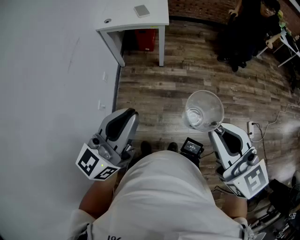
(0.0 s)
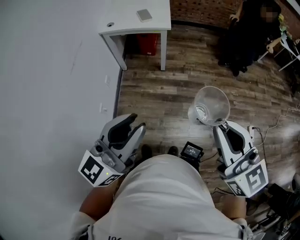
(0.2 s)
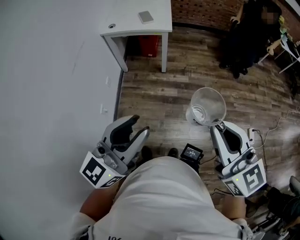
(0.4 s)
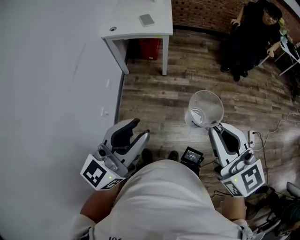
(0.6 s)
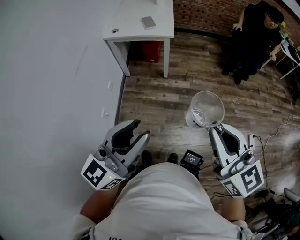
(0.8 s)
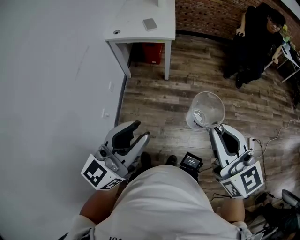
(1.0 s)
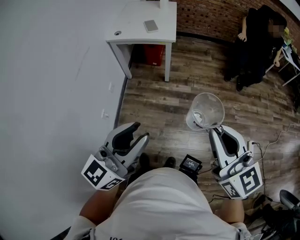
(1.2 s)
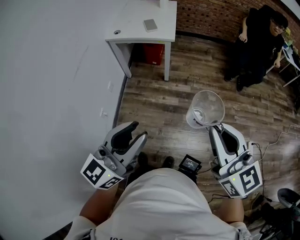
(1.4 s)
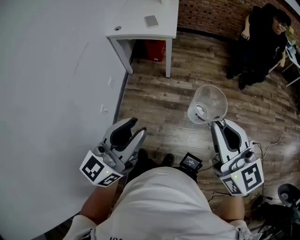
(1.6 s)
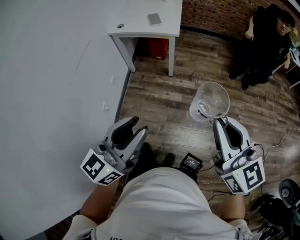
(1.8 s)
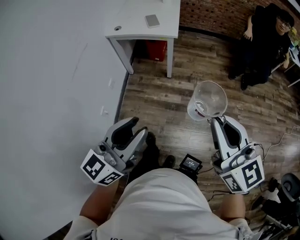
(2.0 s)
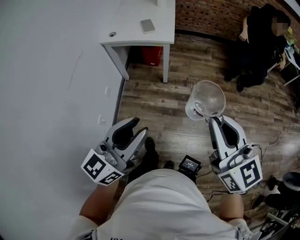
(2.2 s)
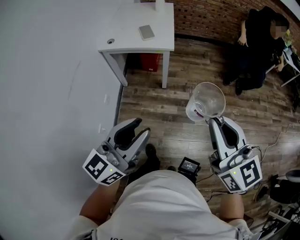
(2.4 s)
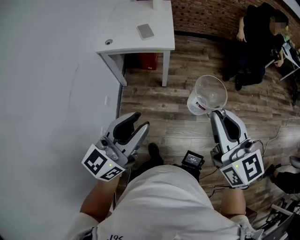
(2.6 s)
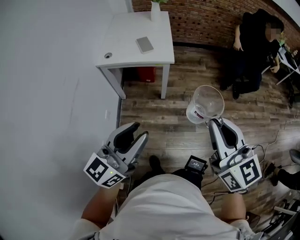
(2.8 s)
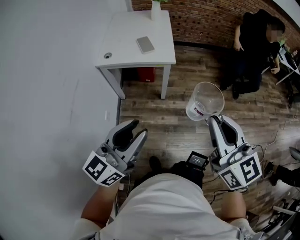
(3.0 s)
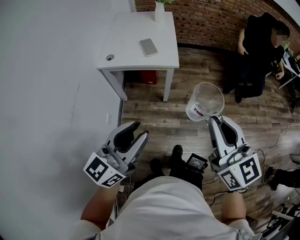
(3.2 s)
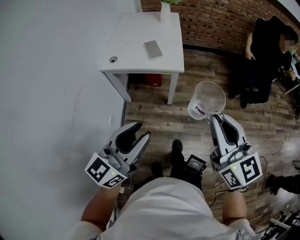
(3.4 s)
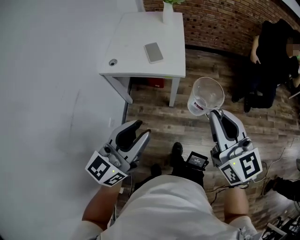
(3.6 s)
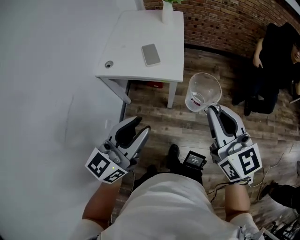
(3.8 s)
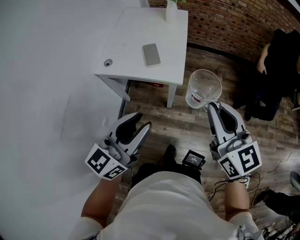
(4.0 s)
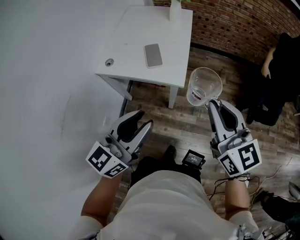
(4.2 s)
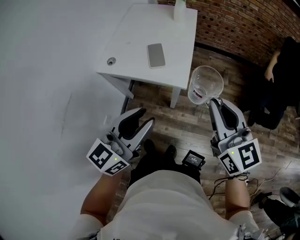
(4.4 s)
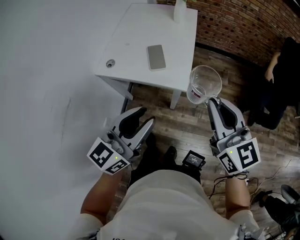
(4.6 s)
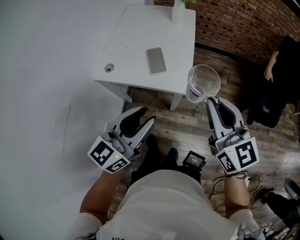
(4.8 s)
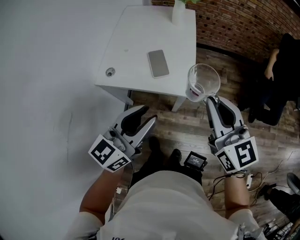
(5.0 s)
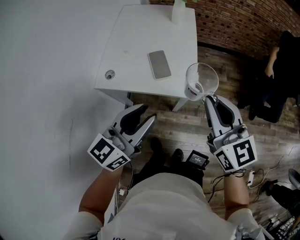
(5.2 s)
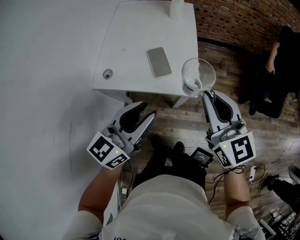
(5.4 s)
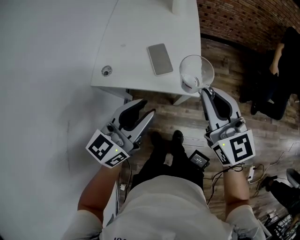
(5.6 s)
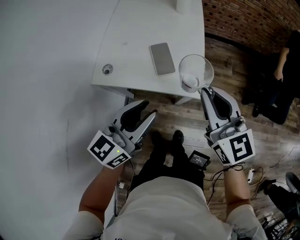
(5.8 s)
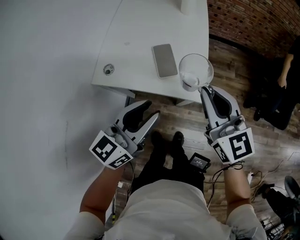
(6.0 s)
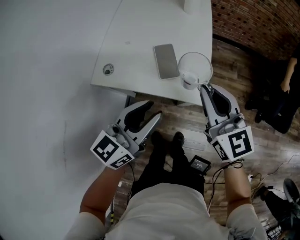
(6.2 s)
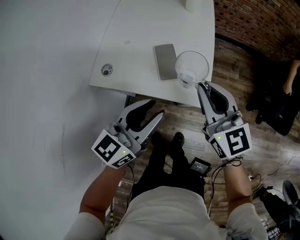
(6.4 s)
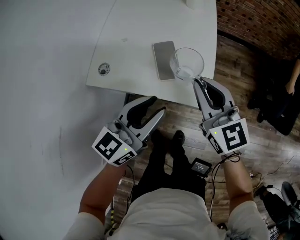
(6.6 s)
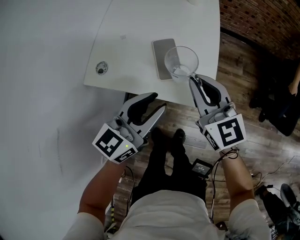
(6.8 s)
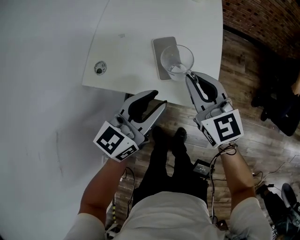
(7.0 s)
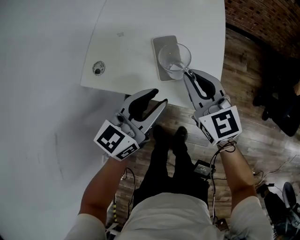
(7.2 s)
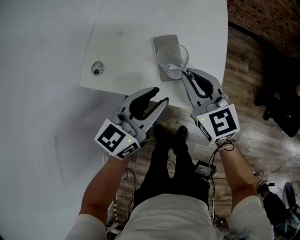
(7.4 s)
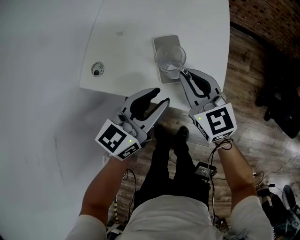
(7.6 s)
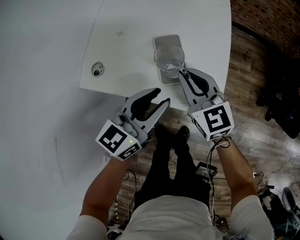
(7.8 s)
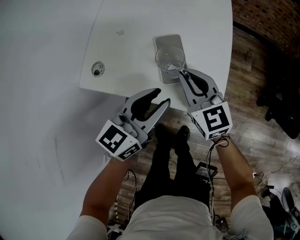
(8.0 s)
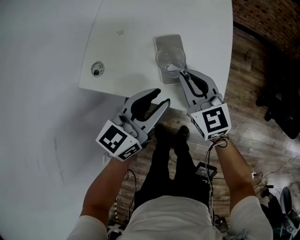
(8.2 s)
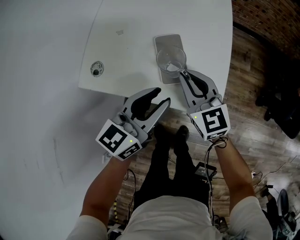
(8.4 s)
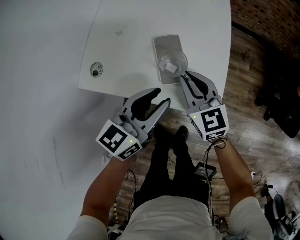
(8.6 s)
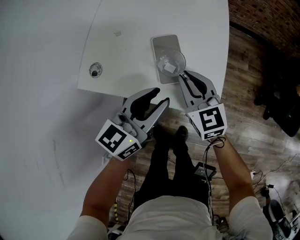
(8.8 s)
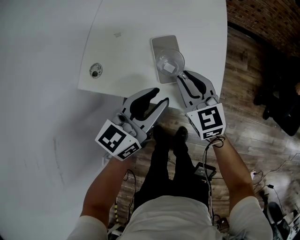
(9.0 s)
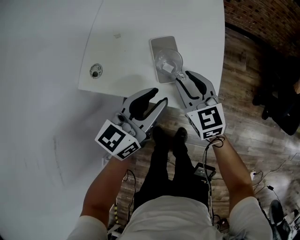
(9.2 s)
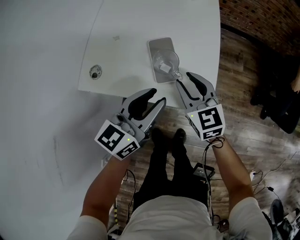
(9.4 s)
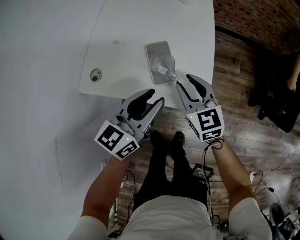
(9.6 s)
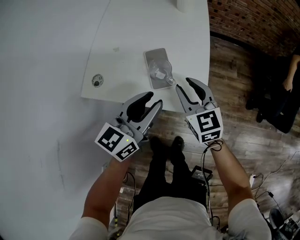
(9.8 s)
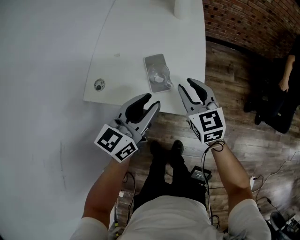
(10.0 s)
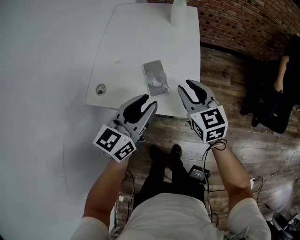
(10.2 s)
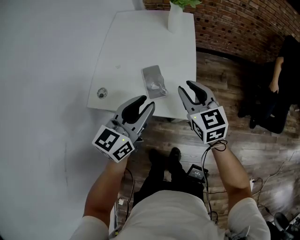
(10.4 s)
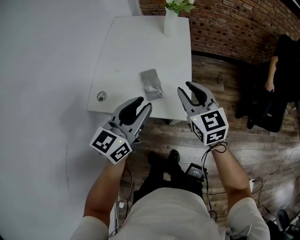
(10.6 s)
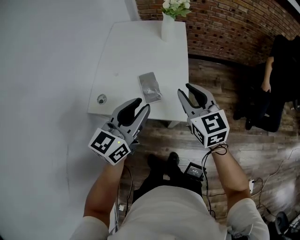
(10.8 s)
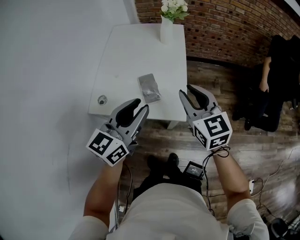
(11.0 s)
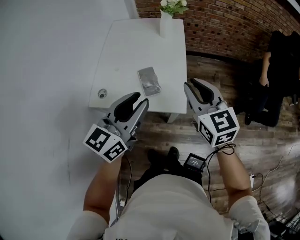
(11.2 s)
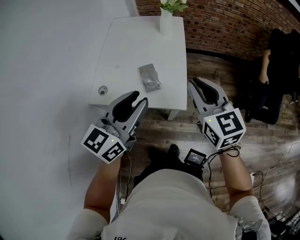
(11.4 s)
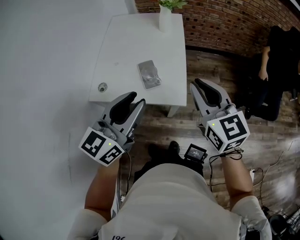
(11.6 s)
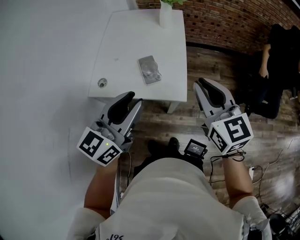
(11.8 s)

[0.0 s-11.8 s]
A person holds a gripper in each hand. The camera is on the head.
0.0 to 1.4 s: Both grippers move to the right, approximately 5 cm. The left gripper opens.
1.4 to 3.0 s: The grippers both shift forward and to the left by approximately 25 cm.
3.0 to 4.4 s: The grippers both shift forward by approximately 25 cm.
4.4 to 6.0 s: Both grippers travel together forward, to the left and downward, about 20 cm.
6.0 to 7.4 s: The left gripper moves downward and forward, about 15 cm. Meanwhile the right gripper moves downward, forward and to the left, roughly 20 cm.
7.4 to 8.8 s: The right gripper travels downward by roughly 5 cm.
8.8 to 10.4 s: The right gripper heads upward and to the right, covering approximately 15 cm, and opens up. The left gripper travels upward by about 10 cm.
10.4 to 11.8 s: The right gripper heads upward, backward and to the right, covering approximately 20 cm; the left gripper shifts some 15 cm upward and backward.

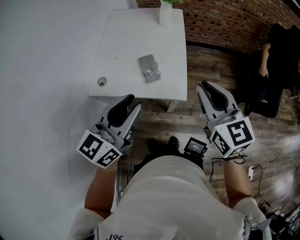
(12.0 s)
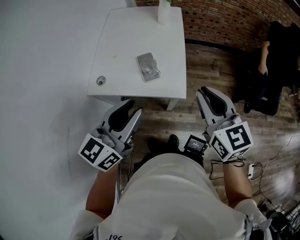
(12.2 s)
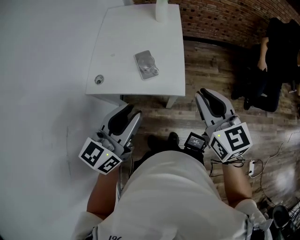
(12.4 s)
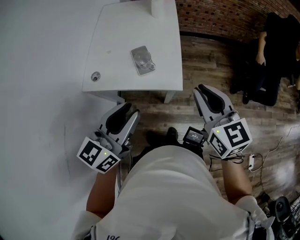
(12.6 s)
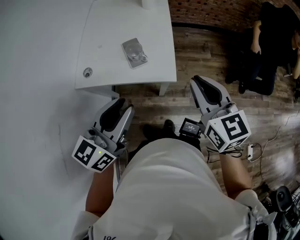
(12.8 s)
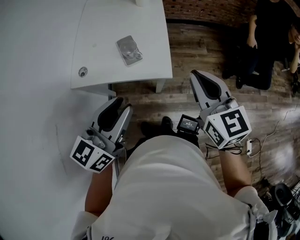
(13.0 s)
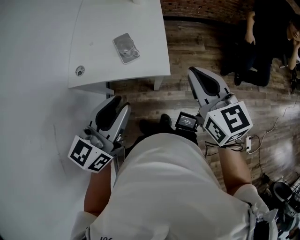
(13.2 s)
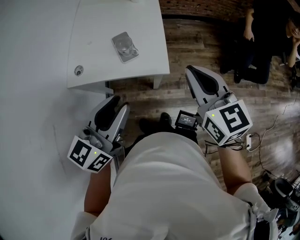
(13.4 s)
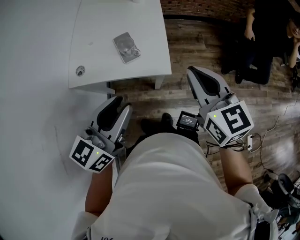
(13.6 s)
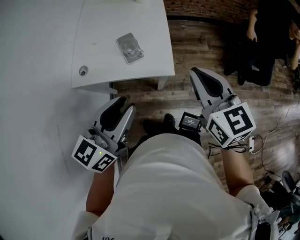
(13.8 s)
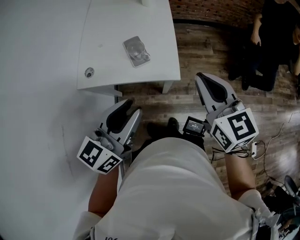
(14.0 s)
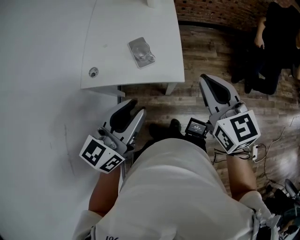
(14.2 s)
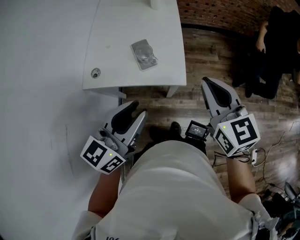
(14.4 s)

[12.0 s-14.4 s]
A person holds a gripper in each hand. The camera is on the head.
12.0 to 13.2 s: The left gripper shifts by roughly 5 cm.
13.2 to 14.4 s: There are only small adjustments of the grippers.

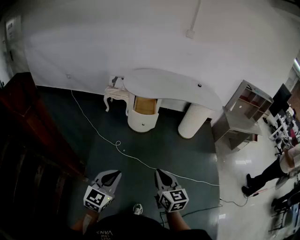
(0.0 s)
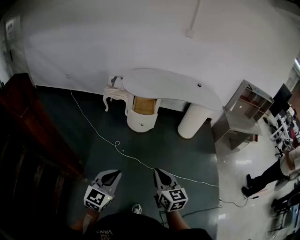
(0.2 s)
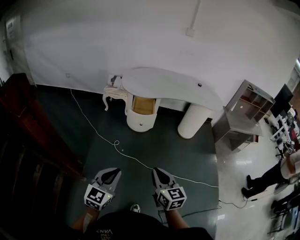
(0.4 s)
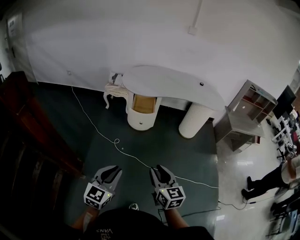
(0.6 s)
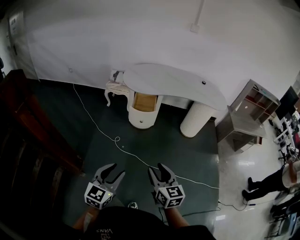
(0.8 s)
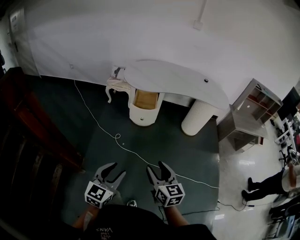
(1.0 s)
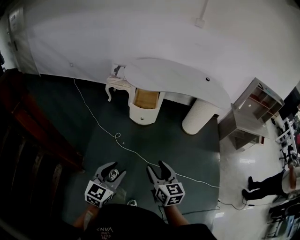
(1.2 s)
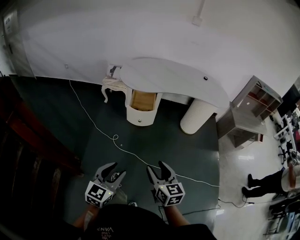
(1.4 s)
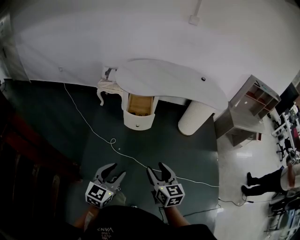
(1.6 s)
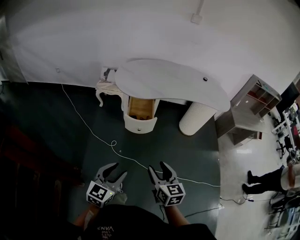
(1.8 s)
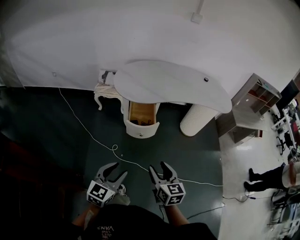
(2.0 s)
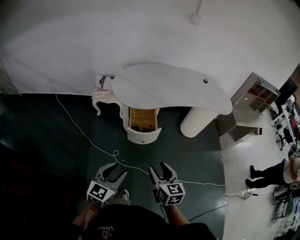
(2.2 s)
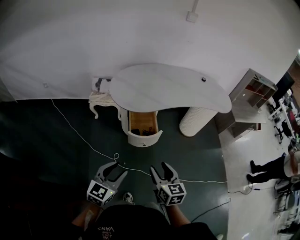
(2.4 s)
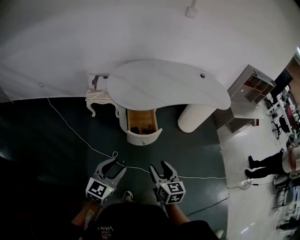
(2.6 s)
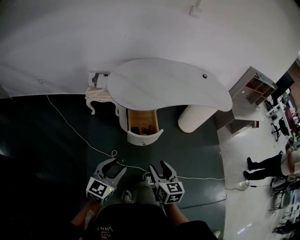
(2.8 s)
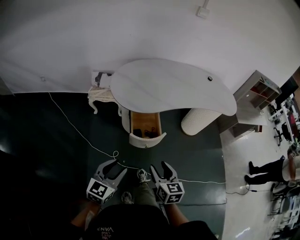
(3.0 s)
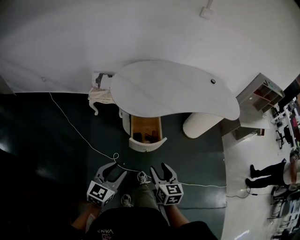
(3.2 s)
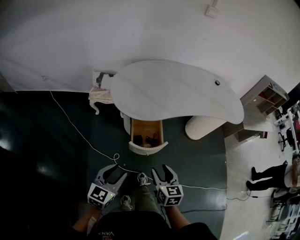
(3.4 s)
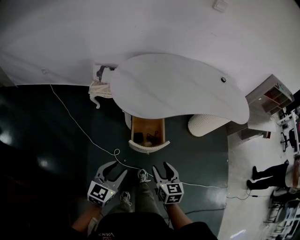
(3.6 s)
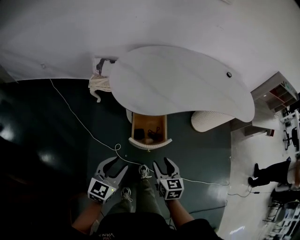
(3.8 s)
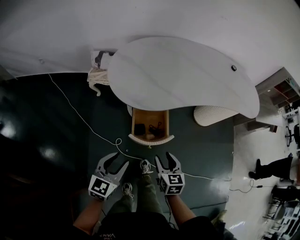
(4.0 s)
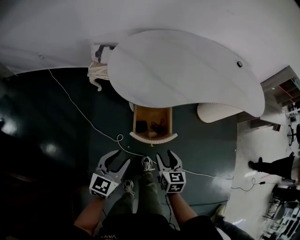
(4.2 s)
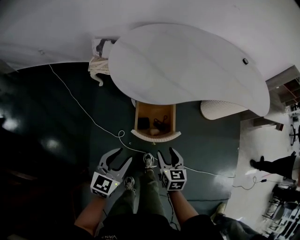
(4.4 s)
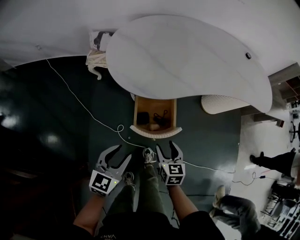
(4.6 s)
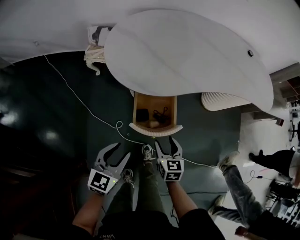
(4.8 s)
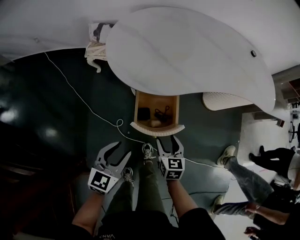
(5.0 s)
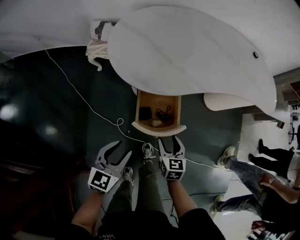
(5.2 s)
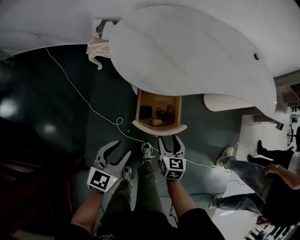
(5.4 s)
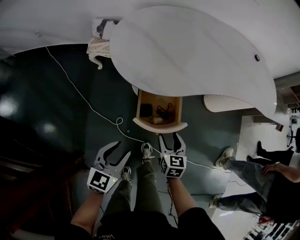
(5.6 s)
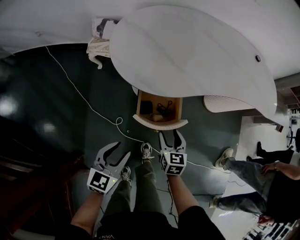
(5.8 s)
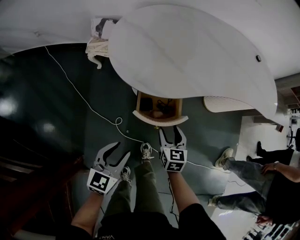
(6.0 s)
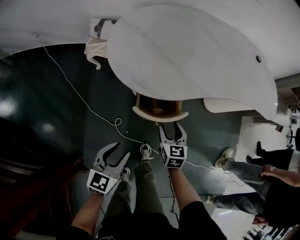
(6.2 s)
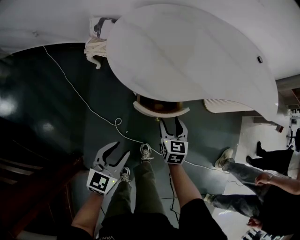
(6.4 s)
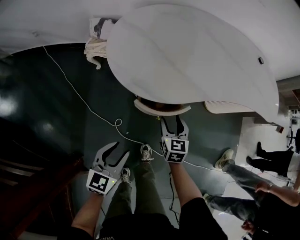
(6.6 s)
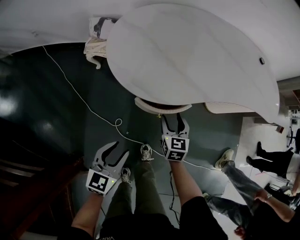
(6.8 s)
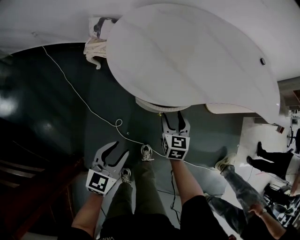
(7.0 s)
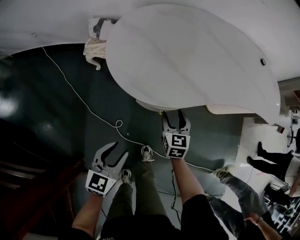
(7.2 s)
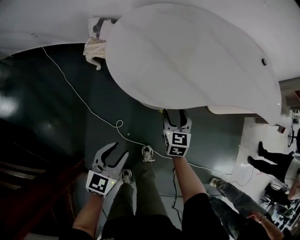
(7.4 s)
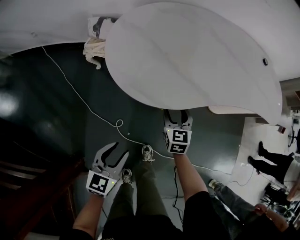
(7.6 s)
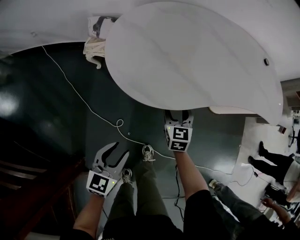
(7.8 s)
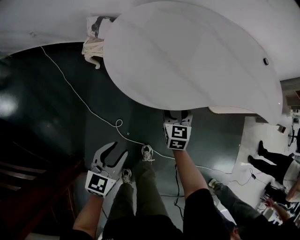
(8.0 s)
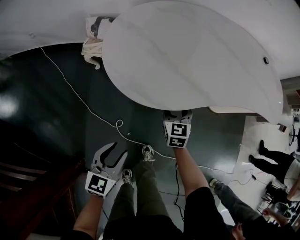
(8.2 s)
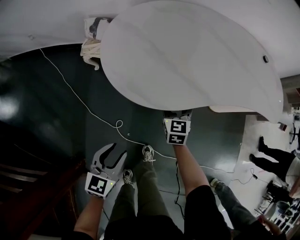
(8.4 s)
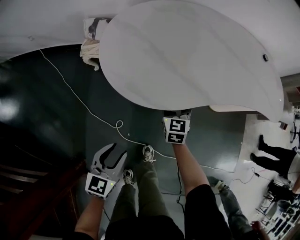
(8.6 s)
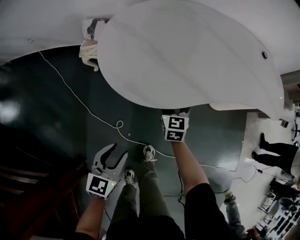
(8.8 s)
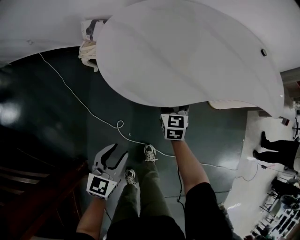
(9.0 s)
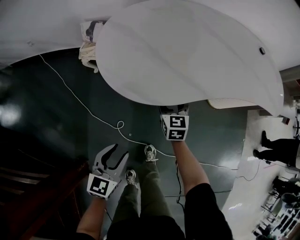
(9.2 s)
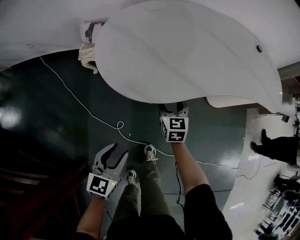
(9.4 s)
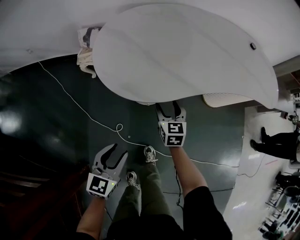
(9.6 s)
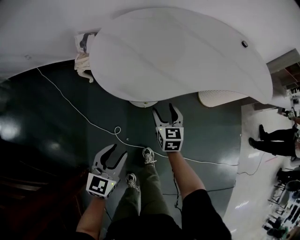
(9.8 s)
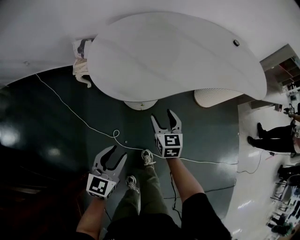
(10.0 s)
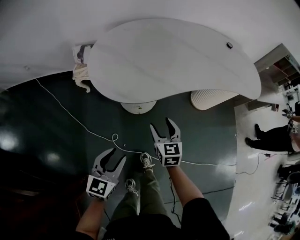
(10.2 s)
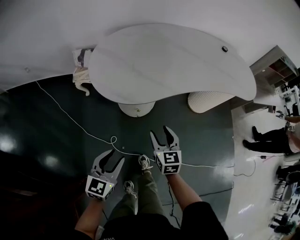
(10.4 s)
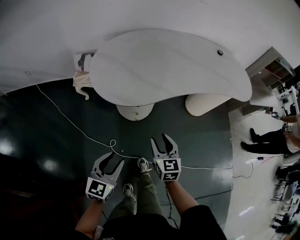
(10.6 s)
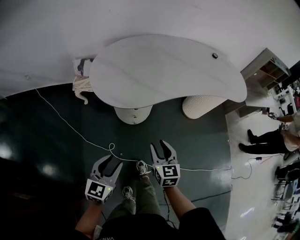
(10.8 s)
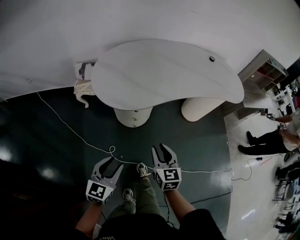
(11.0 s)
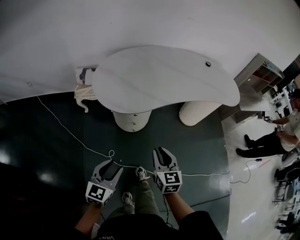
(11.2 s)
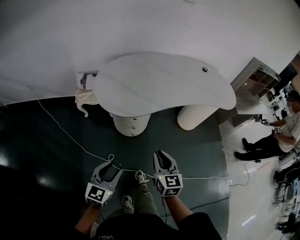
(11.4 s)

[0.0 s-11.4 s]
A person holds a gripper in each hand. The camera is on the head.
0.0 to 1.4 s: The right gripper shifts roughly 10 cm forward, and opens. The left gripper is displaced forward and to the right by approximately 10 cm, and opens up.
1.4 to 2.8 s: Both grippers move forward and to the left, approximately 30 cm.
2.8 to 4.2 s: The two grippers go some 20 cm forward and downward.
4.2 to 5.6 s: The right gripper travels downward and forward by approximately 10 cm. Meanwhile the left gripper travels downward by roughly 5 cm.
5.6 to 7.2 s: The left gripper moves about 5 cm; the right gripper is displaced forward by about 15 cm.
7.2 to 8.6 s: The right gripper moves forward, roughly 5 cm.
8.6 to 10.0 s: The right gripper moves backward and upward, approximately 10 cm; the left gripper shifts some 5 cm upward.
10.0 to 11.4 s: The left gripper is displaced backward and upward by roughly 10 cm. The right gripper shifts some 25 cm backward and upward, and closes up.
